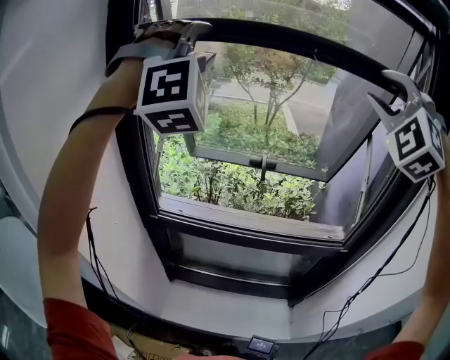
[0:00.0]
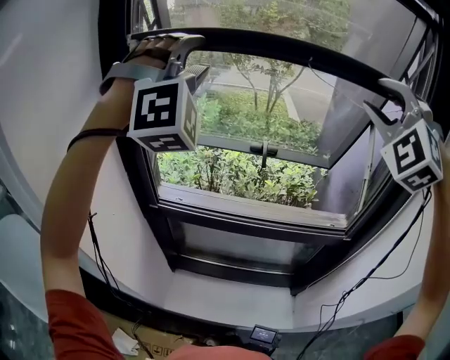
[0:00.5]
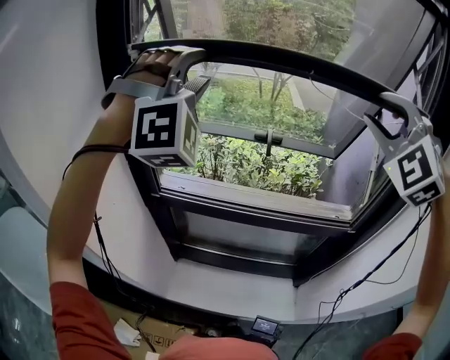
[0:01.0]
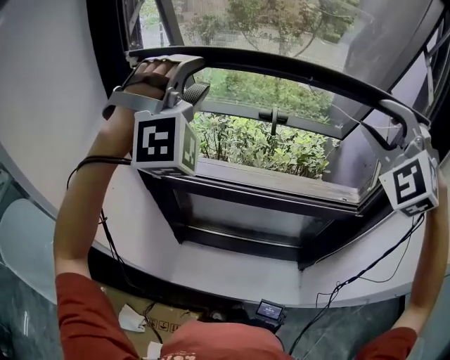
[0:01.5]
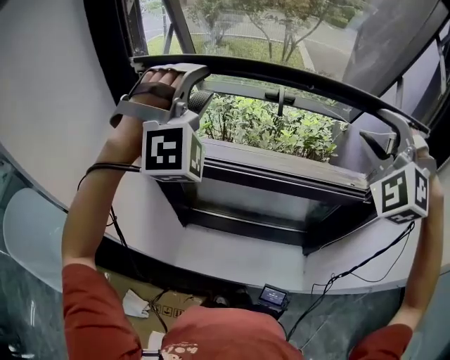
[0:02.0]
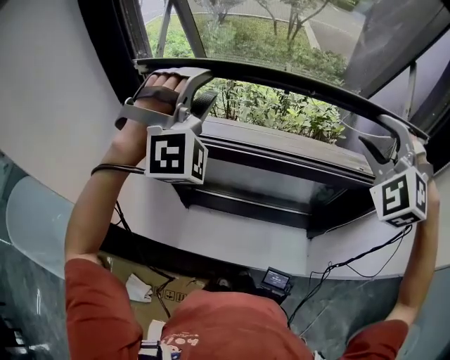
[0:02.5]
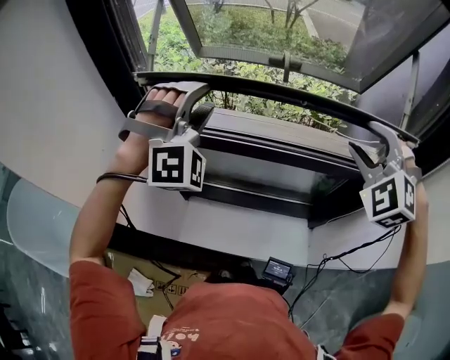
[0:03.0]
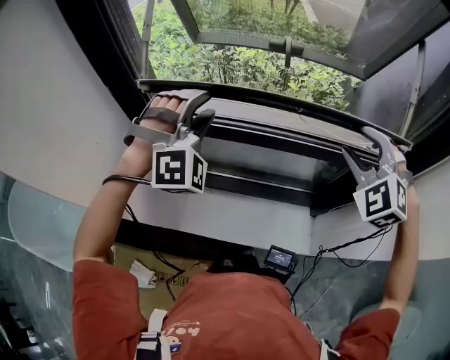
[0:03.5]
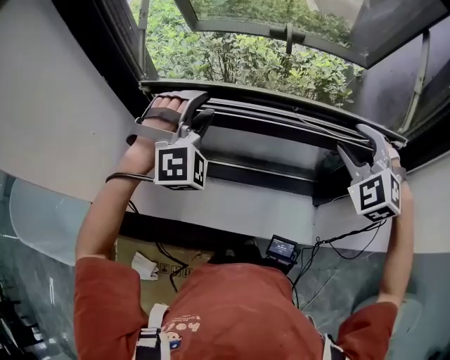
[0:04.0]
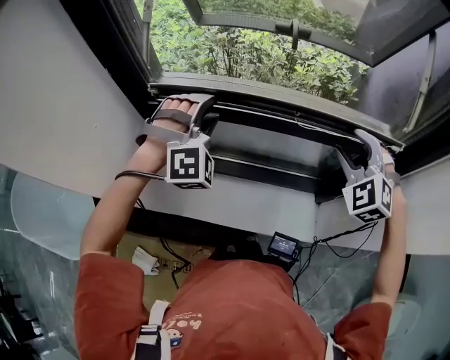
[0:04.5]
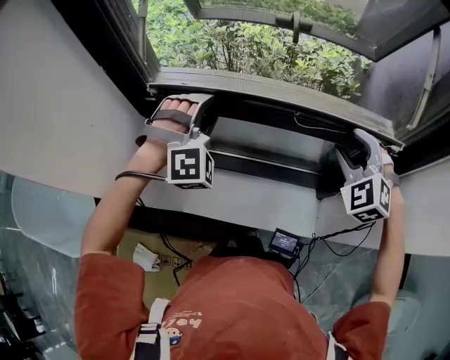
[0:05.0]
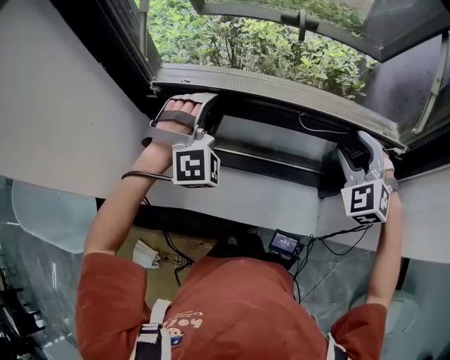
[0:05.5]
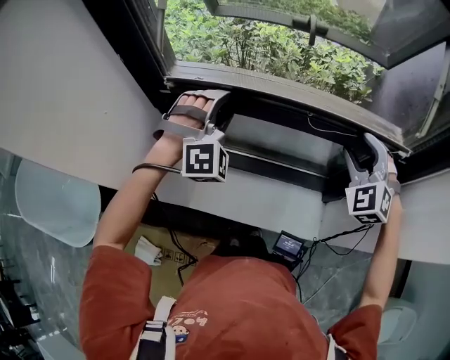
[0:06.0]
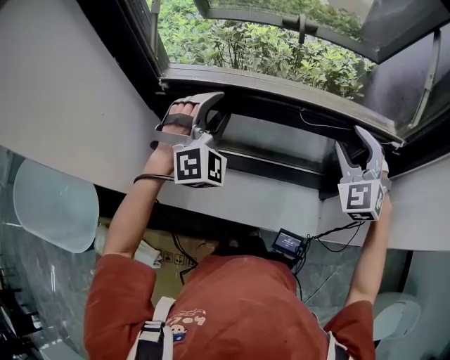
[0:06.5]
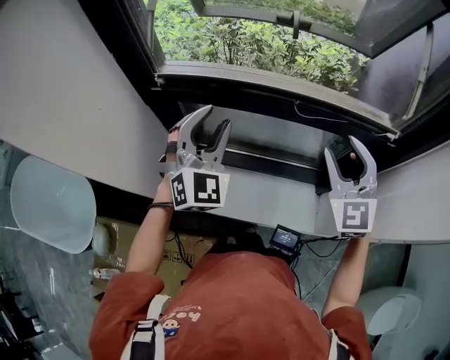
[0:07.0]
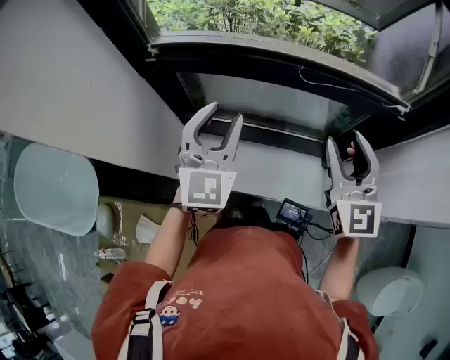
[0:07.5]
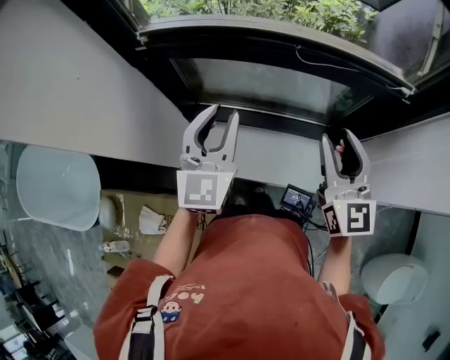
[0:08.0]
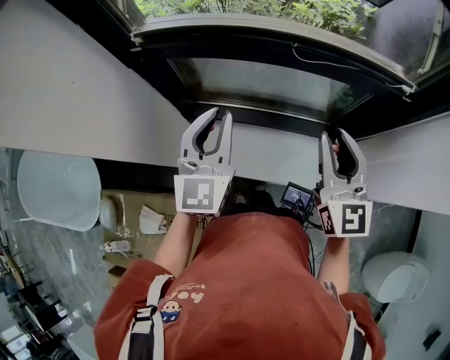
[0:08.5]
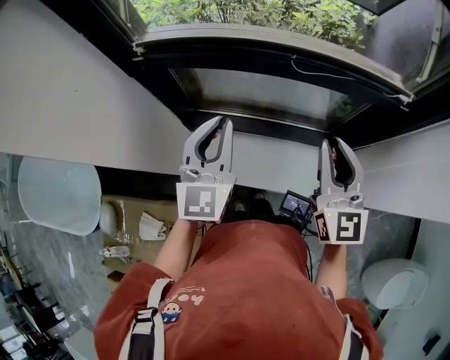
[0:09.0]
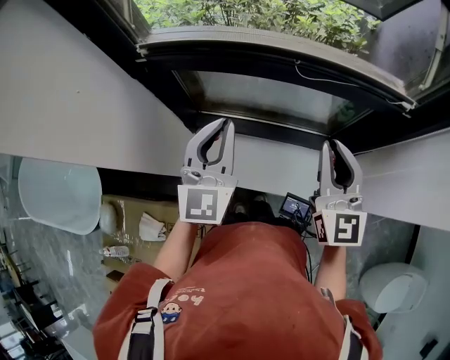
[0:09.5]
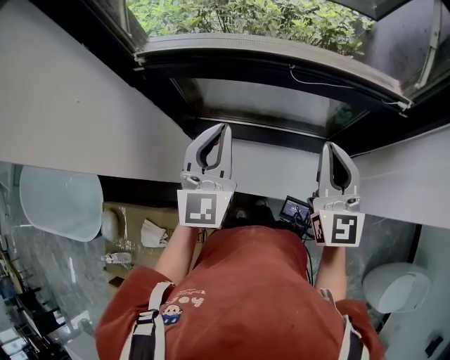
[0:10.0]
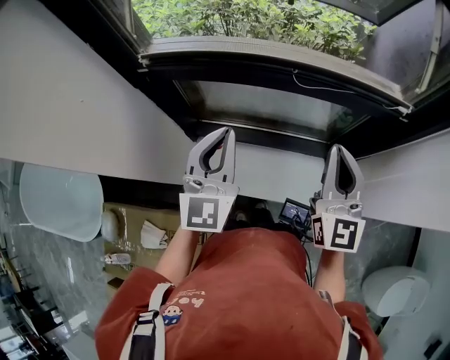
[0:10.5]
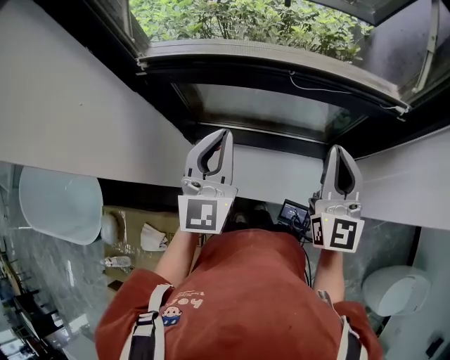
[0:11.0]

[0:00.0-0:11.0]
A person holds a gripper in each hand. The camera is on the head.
0:00.0 to 0:02.0: Both grippers travel together downward, some 25 cm. The right gripper swivels some 20 degrees.
0:02.0 to 0:03.5: Both grippers move downward, roughly 15 cm. The right gripper changes its angle by approximately 20 degrees.
0:03.5 to 0:05.5: The two grippers go roughly 10 cm downward.
0:05.5 to 0:07.5: Both grippers travel together backward, some 10 cm. The left gripper rotates around the line of its fingers by some 70 degrees, counterclockwise from behind, while the right gripper swivels some 50 degrees.
0:07.5 to 0:09.0: The left gripper closes, while the right gripper closes up.
0:09.0 to 0:11.0: The grippers stay close to where they were, moving slightly.

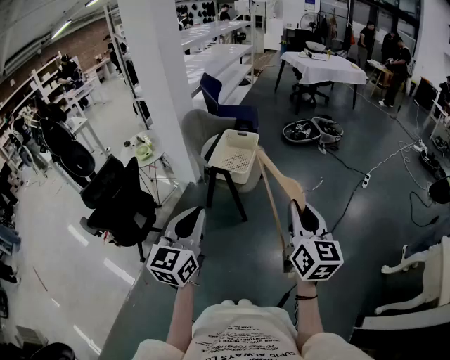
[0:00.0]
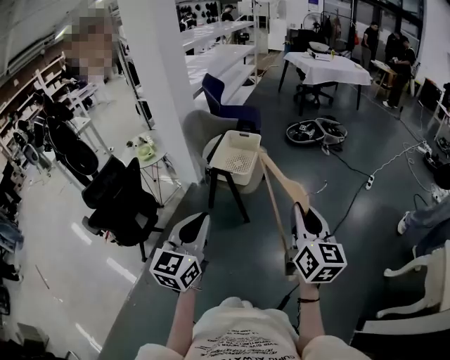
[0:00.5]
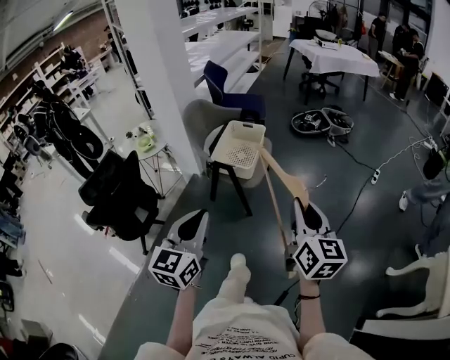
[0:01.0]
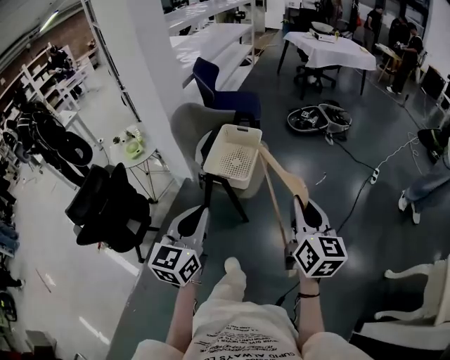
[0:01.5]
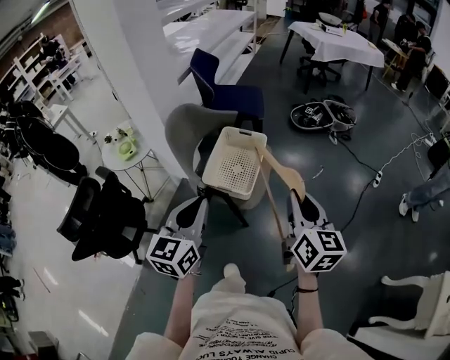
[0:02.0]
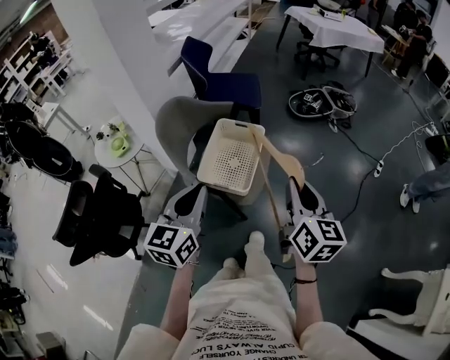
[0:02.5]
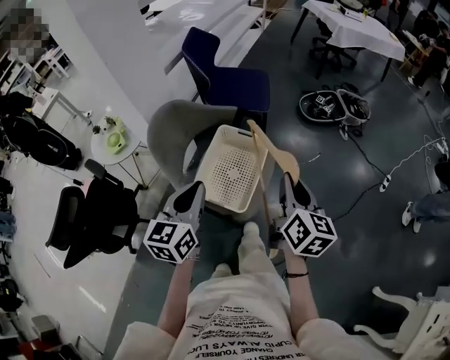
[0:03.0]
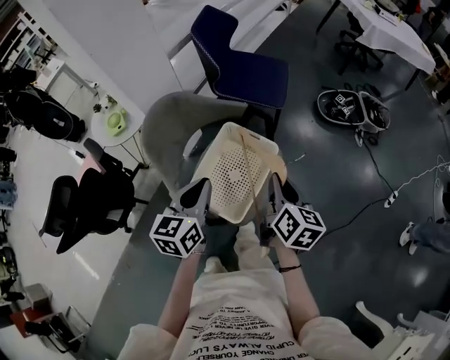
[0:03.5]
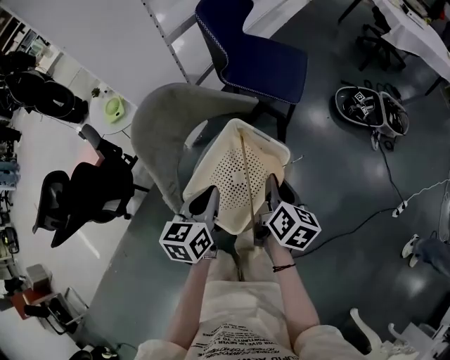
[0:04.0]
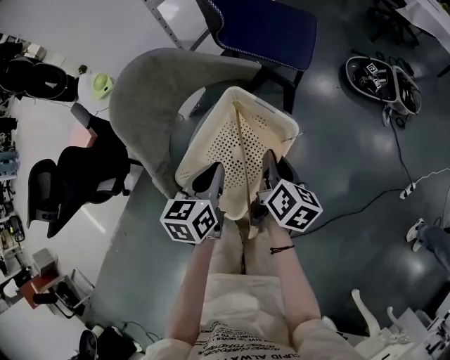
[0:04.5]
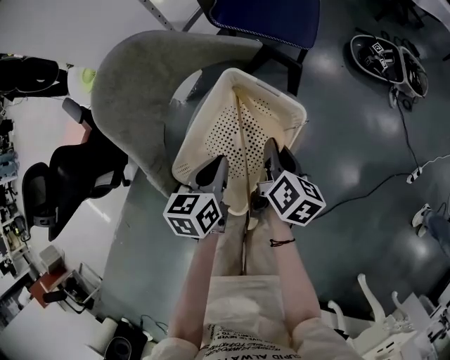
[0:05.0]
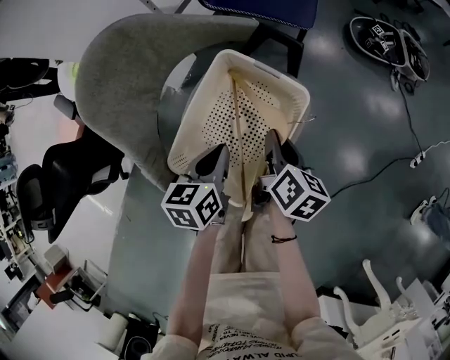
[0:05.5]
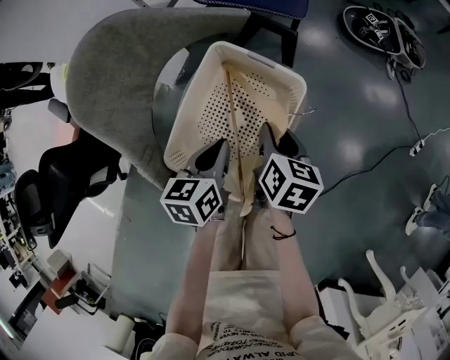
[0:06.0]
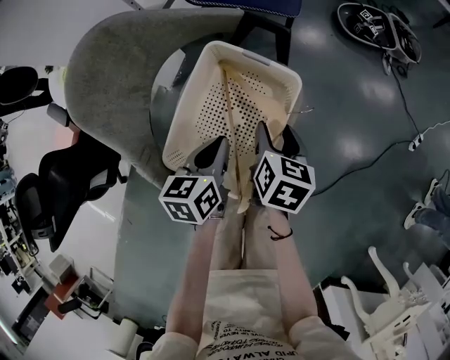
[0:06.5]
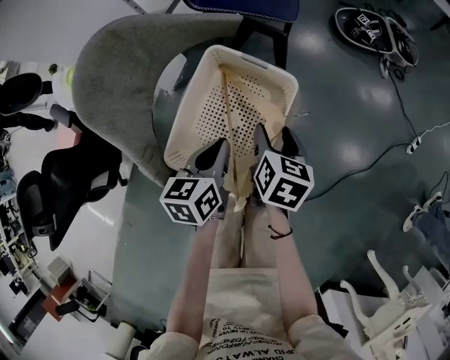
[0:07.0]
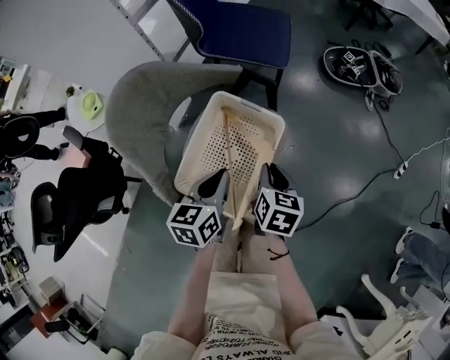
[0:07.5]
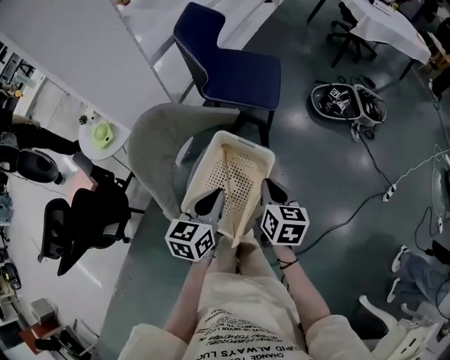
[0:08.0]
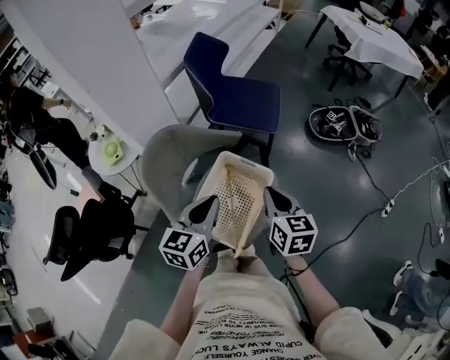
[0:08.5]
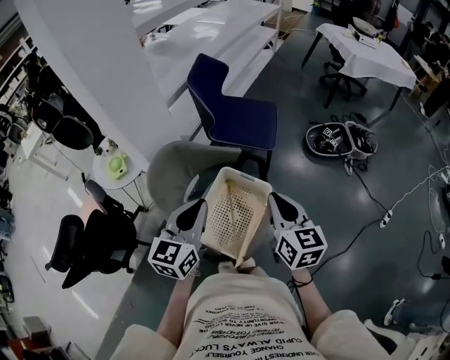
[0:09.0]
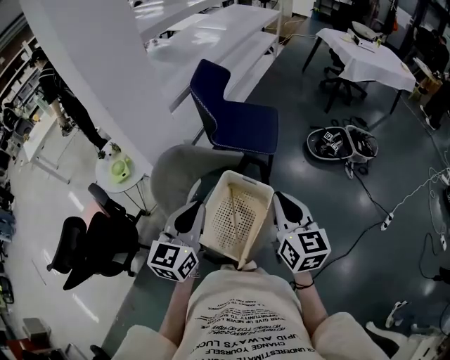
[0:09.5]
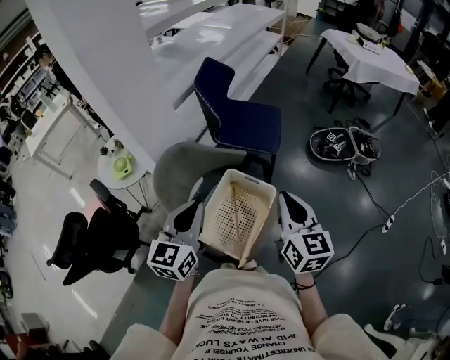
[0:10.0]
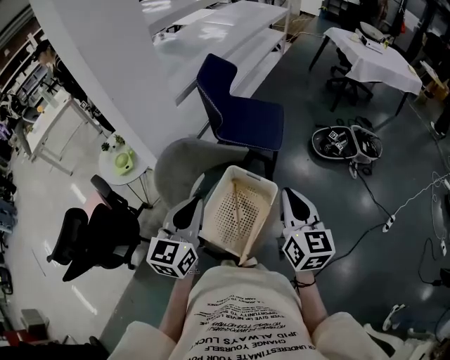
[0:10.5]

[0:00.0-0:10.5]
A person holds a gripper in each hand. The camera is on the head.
0:00.0 to 0:02.0: The two grippers go roughly 30 cm forward.
0:02.0 to 0:04.0: Both grippers move forward and downward, about 40 cm. The right gripper turns by roughly 30 degrees. Meanwhile the left gripper changes its angle by roughly 30 degrees.
0:04.0 to 0:06.5: The two grippers go roughly 15 cm downward. The right gripper opens up.
0:06.5 to 0:08.5: Both grippers move upward, approximately 25 cm. The left gripper rotates roughly 30 degrees. The right gripper swivels some 30 degrees, and closes its fingers.
0:08.5 to 0:10.5: The right gripper moves upward, roughly 10 cm; the left gripper goes approximately 10 cm upward and to the left.

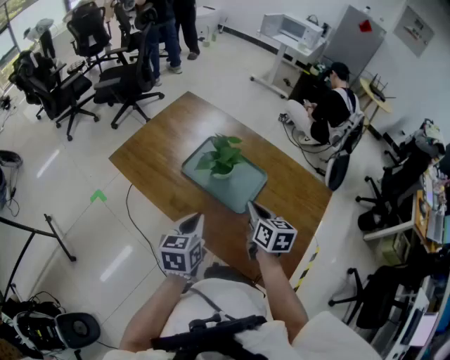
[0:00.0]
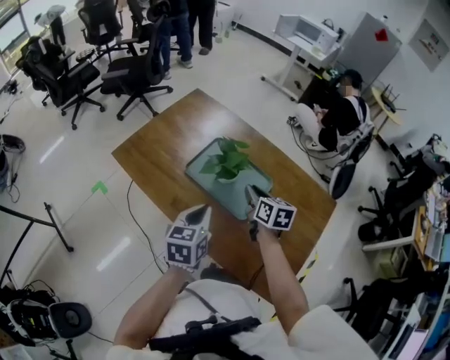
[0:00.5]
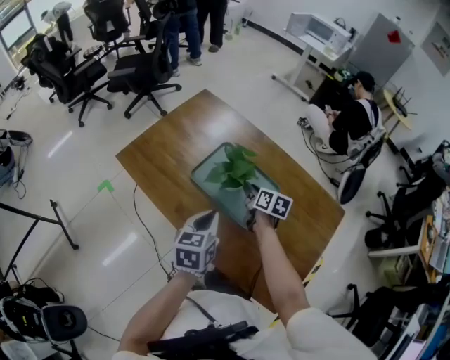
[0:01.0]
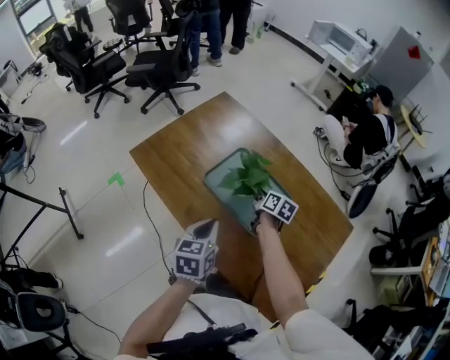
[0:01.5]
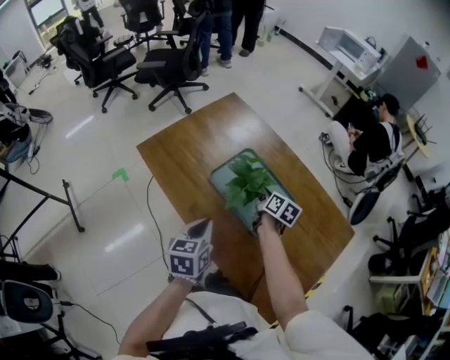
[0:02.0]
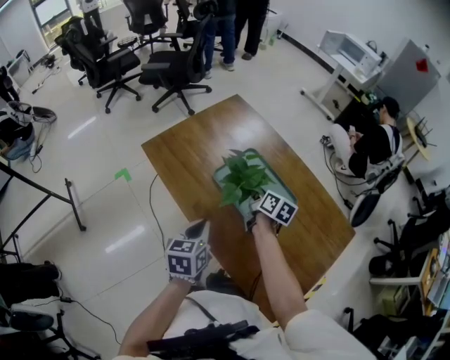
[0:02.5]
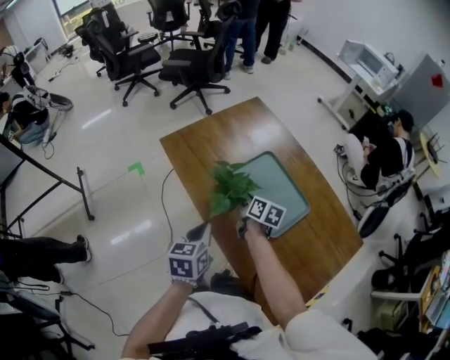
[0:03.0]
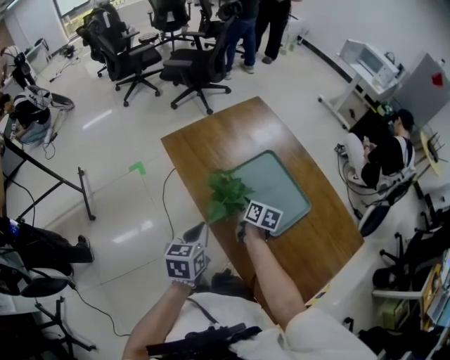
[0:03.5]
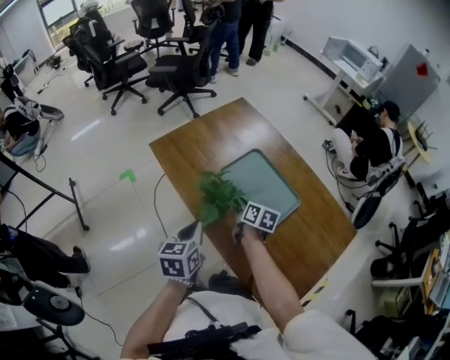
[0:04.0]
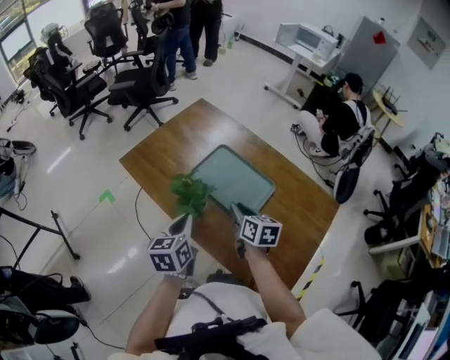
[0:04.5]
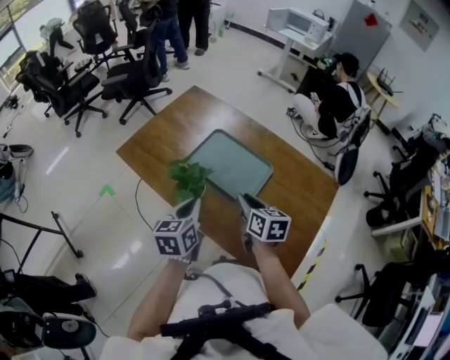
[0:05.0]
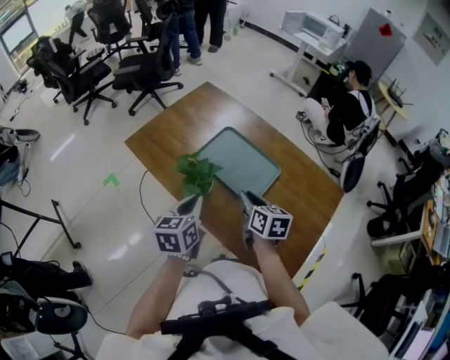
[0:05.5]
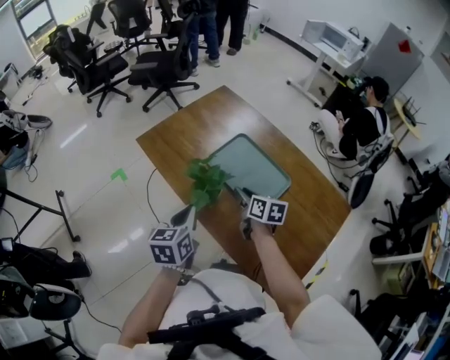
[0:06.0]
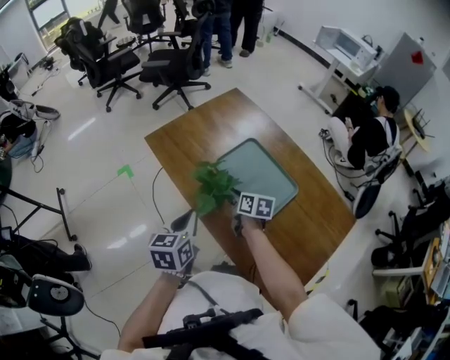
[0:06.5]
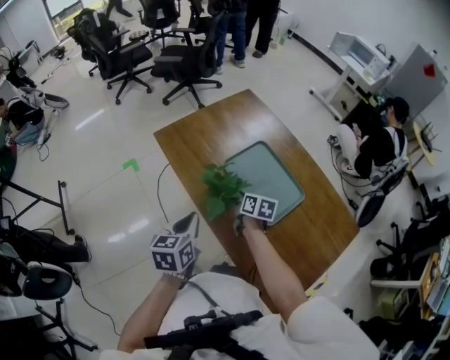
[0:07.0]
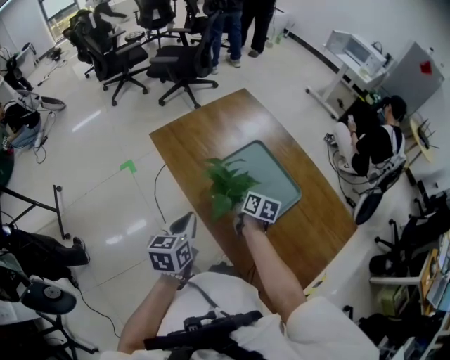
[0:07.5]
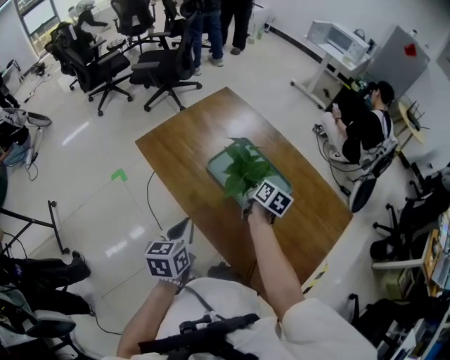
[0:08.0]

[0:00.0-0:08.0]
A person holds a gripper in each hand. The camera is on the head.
0:00.0 to 0:02.0: The right gripper moves forward and downward, about 20 cm, while the left gripper ends up about 5 cm from where it was.
0:02.0 to 0:04.0: The right gripper is displaced to the left and backward by about 15 cm, while the left gripper goes roughly 10 cm to the left.
0:04.0 to 0:06.0: The left gripper travels to the right and back again, some 10 cm each way.
0:06.0 to 0:08.0: The right gripper goes roughly 10 cm forward and to the right, rotates about 20 degrees, and closes.
